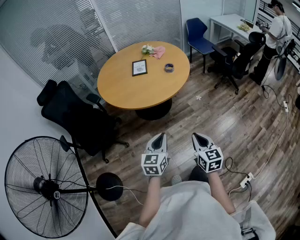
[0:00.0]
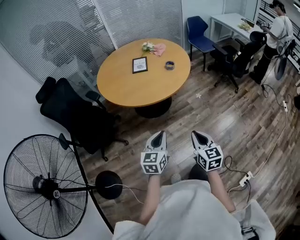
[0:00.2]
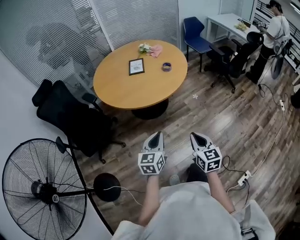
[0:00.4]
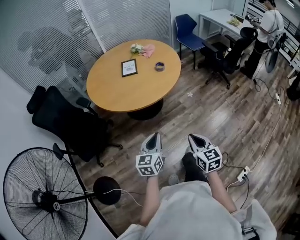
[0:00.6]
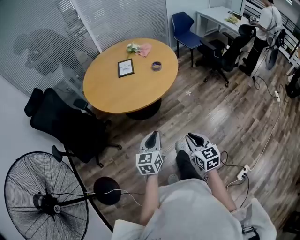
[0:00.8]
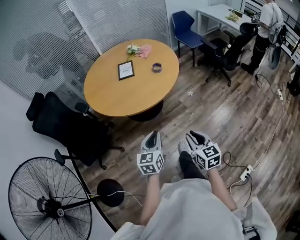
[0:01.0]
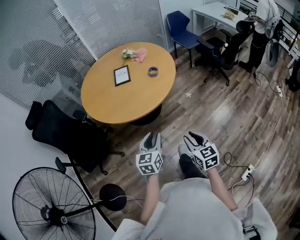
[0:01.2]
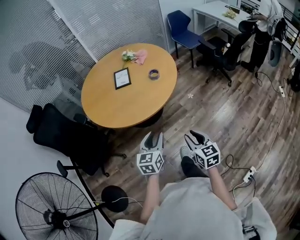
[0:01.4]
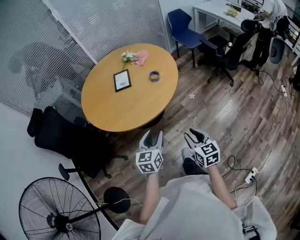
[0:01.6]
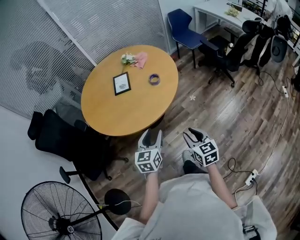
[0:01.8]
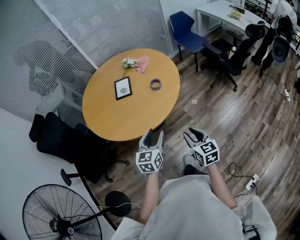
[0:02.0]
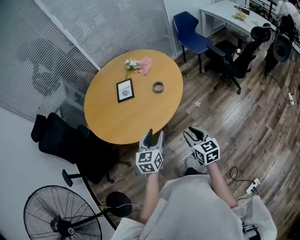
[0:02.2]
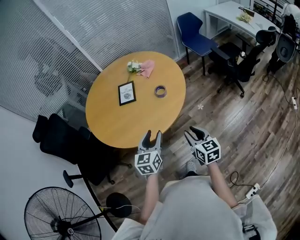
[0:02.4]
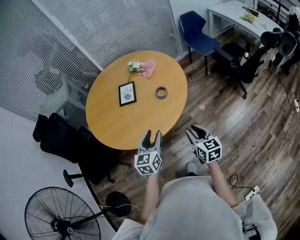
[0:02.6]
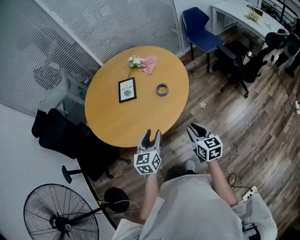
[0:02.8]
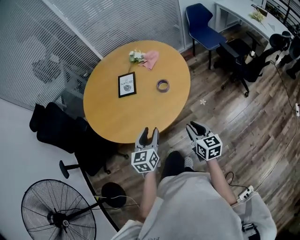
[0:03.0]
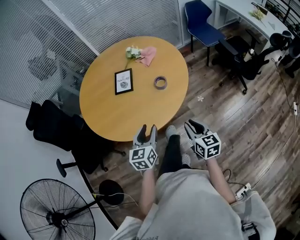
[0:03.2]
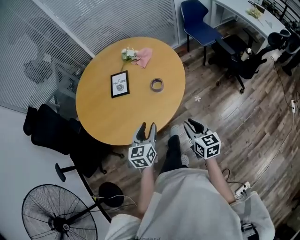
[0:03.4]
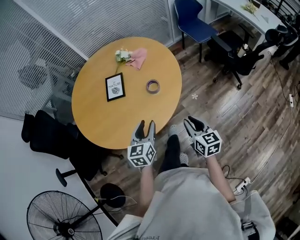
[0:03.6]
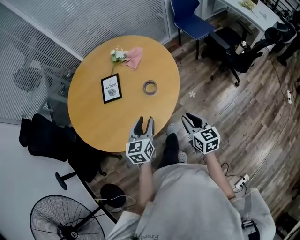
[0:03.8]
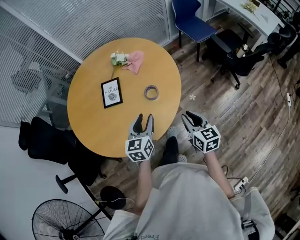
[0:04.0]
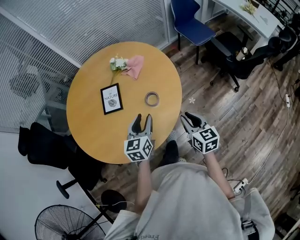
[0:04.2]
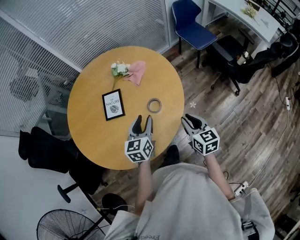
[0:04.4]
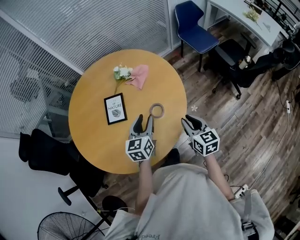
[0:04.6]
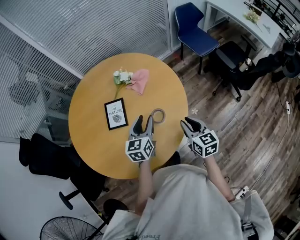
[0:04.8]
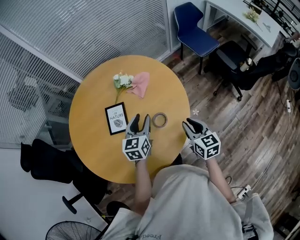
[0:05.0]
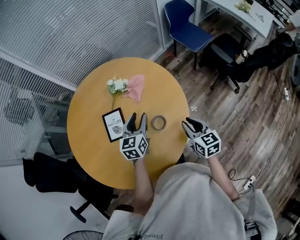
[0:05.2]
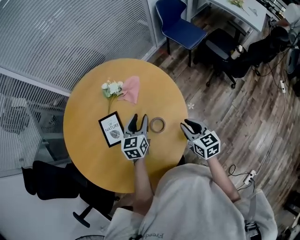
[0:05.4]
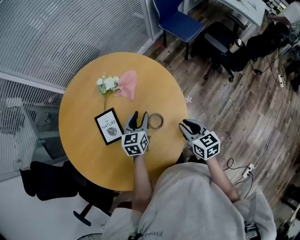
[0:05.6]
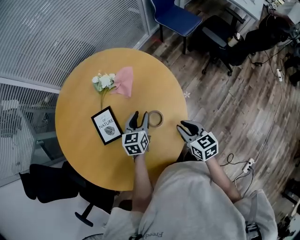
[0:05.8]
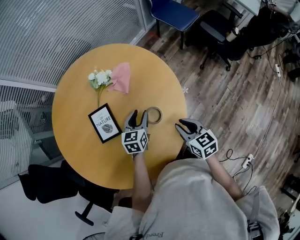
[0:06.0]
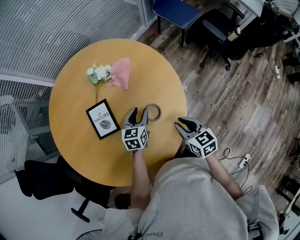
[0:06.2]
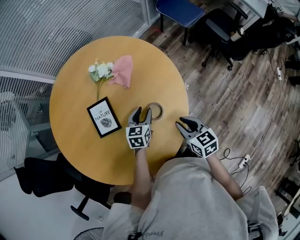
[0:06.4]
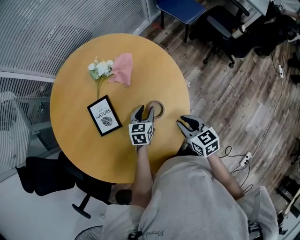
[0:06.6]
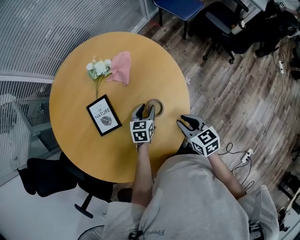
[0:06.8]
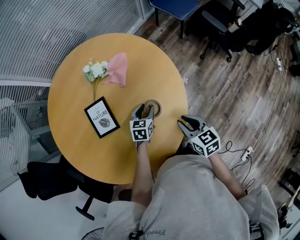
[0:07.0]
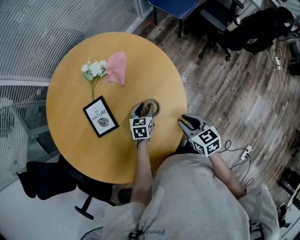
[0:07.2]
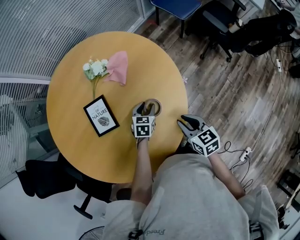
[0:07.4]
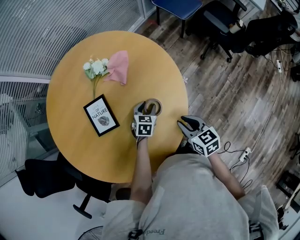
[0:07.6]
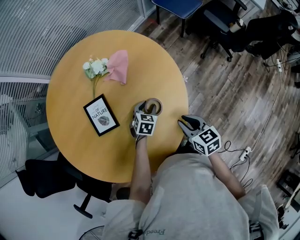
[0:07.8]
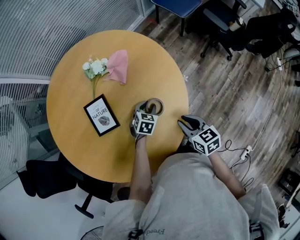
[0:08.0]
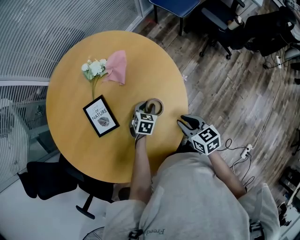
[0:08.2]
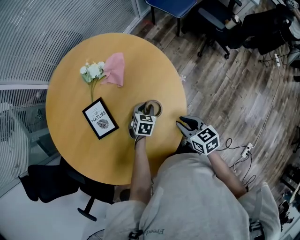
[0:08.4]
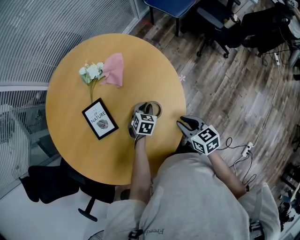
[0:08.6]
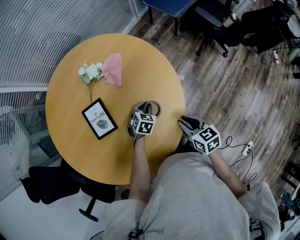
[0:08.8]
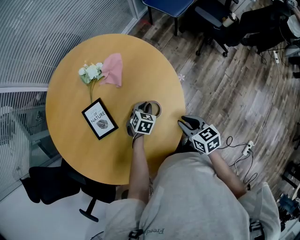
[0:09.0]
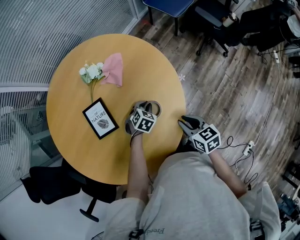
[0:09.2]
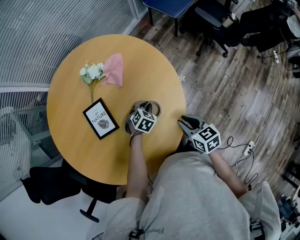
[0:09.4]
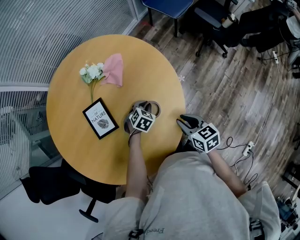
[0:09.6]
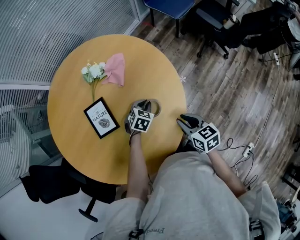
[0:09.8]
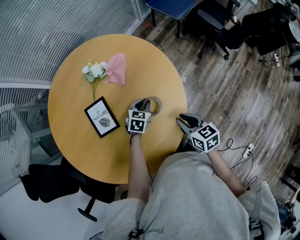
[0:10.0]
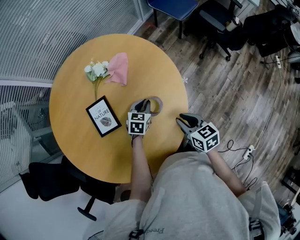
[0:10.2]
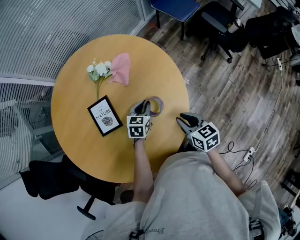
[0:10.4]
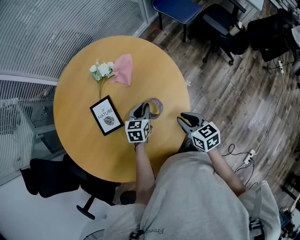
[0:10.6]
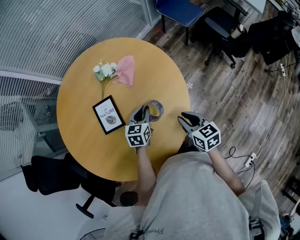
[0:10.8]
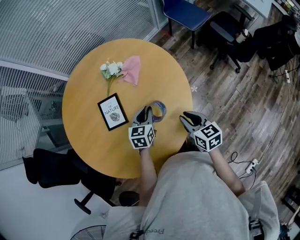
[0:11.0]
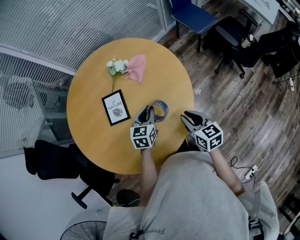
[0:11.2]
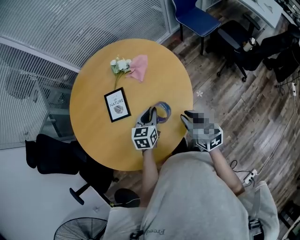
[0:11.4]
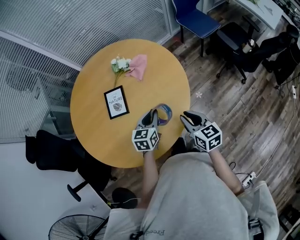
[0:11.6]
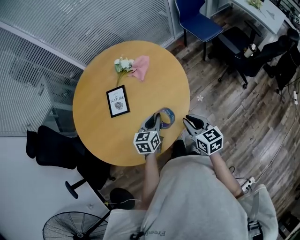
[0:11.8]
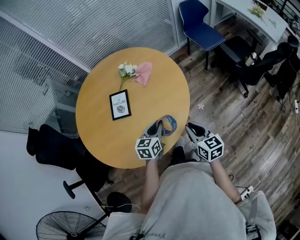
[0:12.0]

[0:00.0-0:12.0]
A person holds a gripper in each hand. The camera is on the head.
0:00.0 to 0:01.6: The grippers both shift forward by roughly 20 cm. The left gripper opens up. Meanwhile the right gripper opens its fingers.
0:01.6 to 0:03.0: The grippers both shift forward by roughly 20 cm.
0:03.0 to 0:04.4: The grippers both shift forward by some 20 cm.
0:04.4 to 0:06.0: The right gripper is displaced downward, forward and to the left by roughly 10 cm. Meanwhile the left gripper heads forward and downward, covering some 20 cm, and turns by roughly 20 degrees.
0:06.0 to 0:07.6: The left gripper shifts approximately 10 cm downward, and rotates roughly 20 degrees.
0:07.6 to 0:09.0: The left gripper closes its fingers.
0:09.0 to 0:10.4: The left gripper heads upward, covering roughly 5 cm, and rotates approximately 30 degrees.
0:10.4 to 0:12.0: The right gripper travels backward, upward and to the right by some 15 cm; the left gripper is displaced backward and upward by roughly 20 cm, and turns by about 30 degrees.

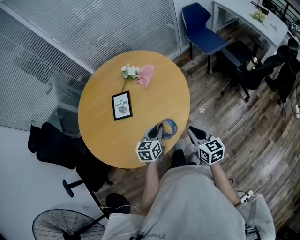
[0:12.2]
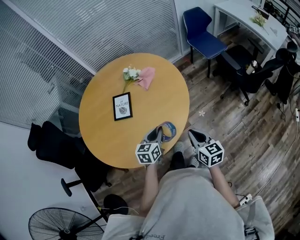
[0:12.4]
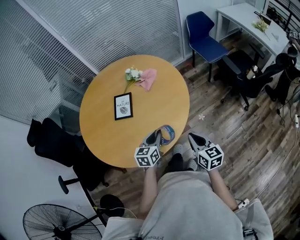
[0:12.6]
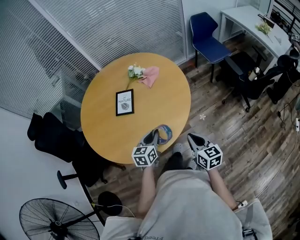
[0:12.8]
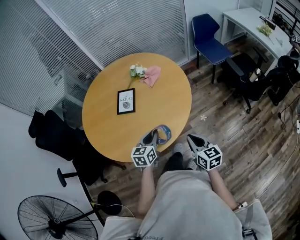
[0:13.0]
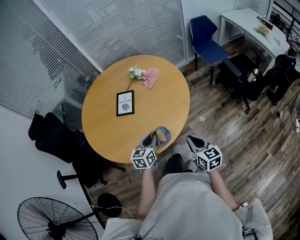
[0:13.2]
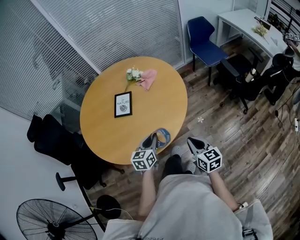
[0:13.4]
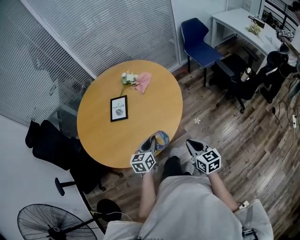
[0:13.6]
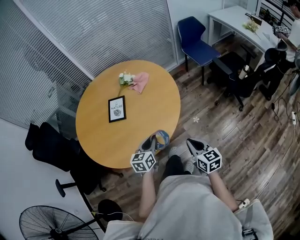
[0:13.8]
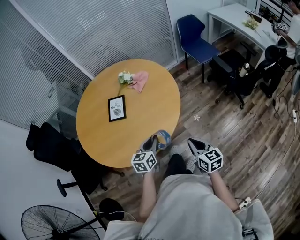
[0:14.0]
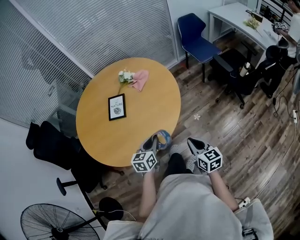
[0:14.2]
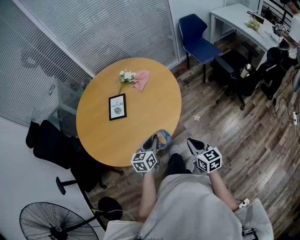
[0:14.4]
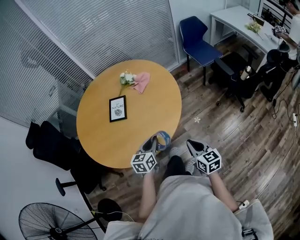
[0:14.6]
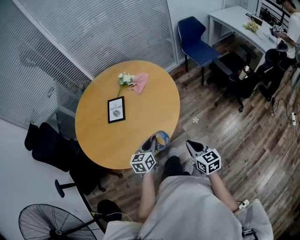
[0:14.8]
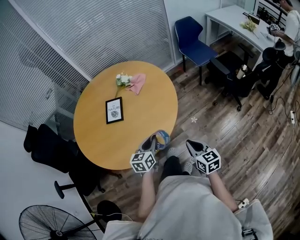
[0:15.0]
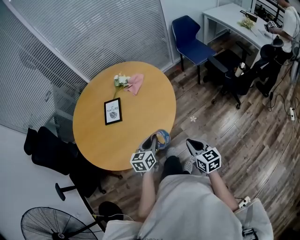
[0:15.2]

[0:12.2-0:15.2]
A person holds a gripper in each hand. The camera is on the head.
0:12.2 to 0:13.8: Both grippers travel together backward, some 10 cm.
0:13.8 to 0:15.2: There are only small adjustments of the grippers.

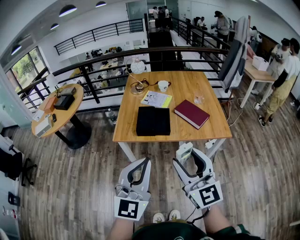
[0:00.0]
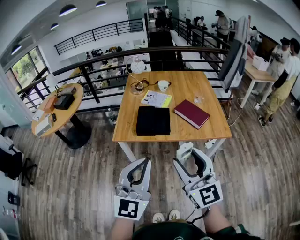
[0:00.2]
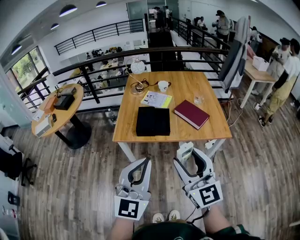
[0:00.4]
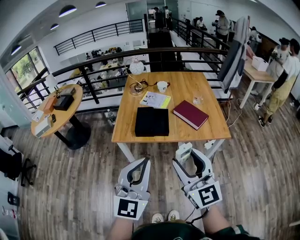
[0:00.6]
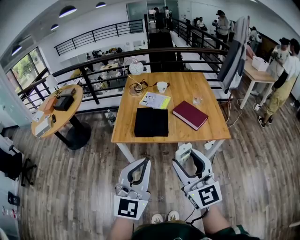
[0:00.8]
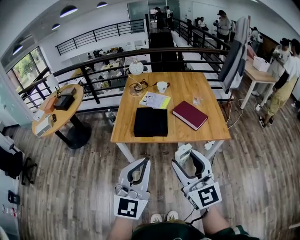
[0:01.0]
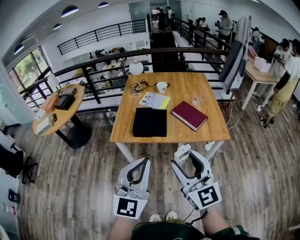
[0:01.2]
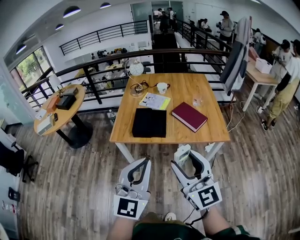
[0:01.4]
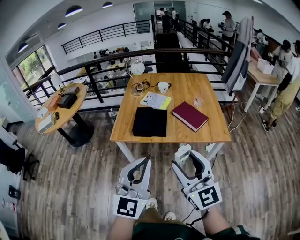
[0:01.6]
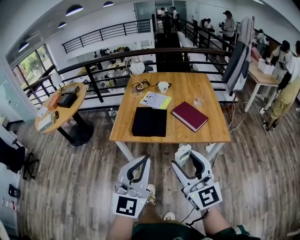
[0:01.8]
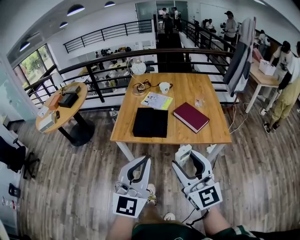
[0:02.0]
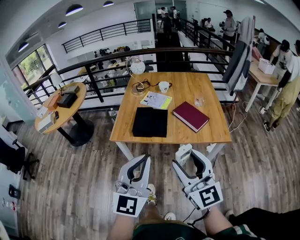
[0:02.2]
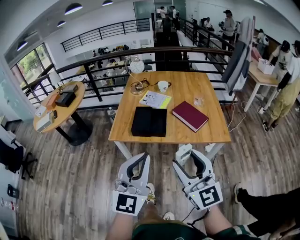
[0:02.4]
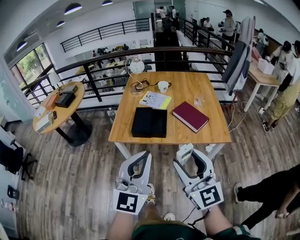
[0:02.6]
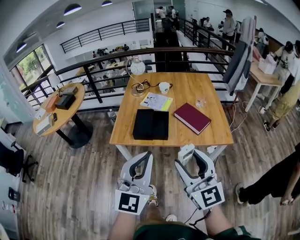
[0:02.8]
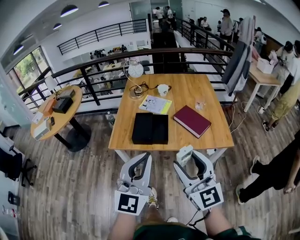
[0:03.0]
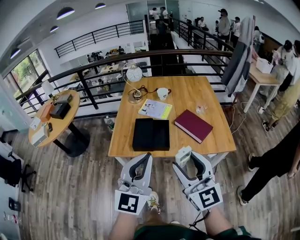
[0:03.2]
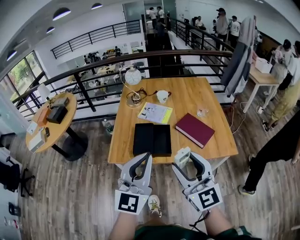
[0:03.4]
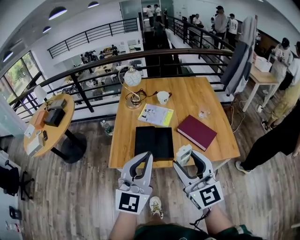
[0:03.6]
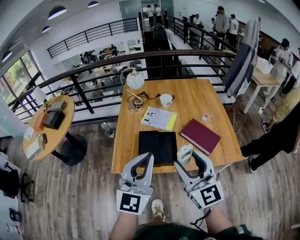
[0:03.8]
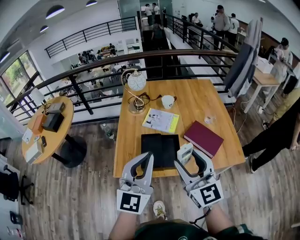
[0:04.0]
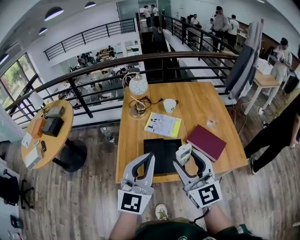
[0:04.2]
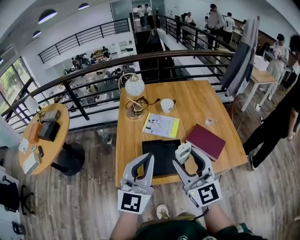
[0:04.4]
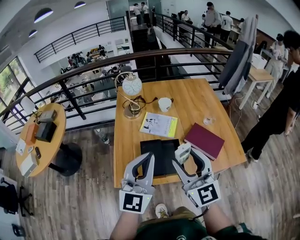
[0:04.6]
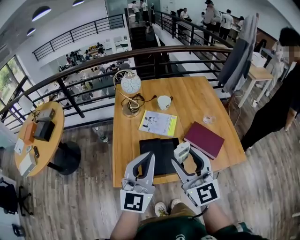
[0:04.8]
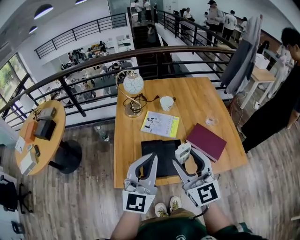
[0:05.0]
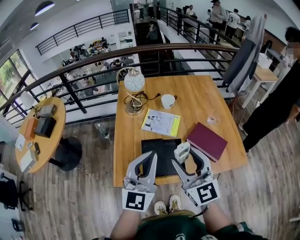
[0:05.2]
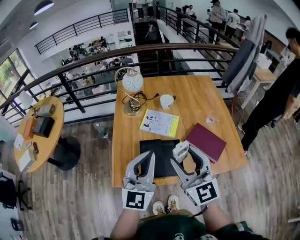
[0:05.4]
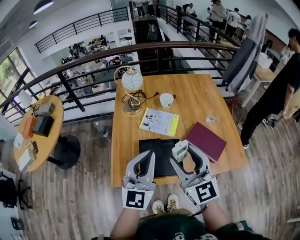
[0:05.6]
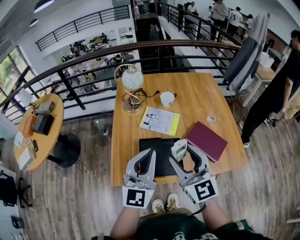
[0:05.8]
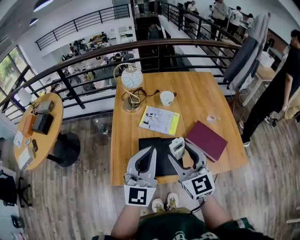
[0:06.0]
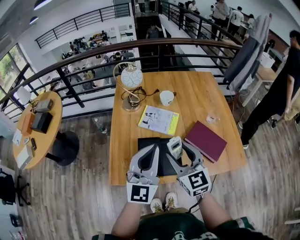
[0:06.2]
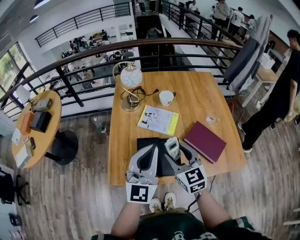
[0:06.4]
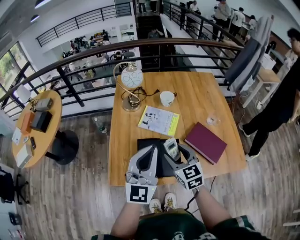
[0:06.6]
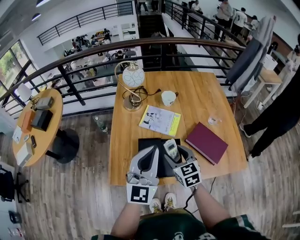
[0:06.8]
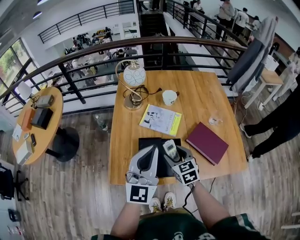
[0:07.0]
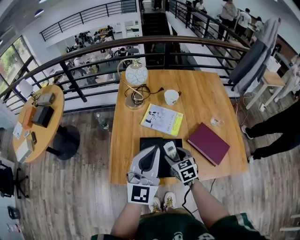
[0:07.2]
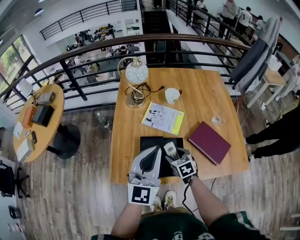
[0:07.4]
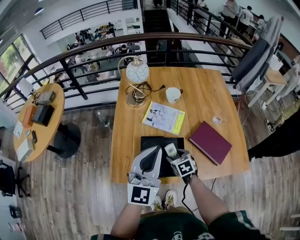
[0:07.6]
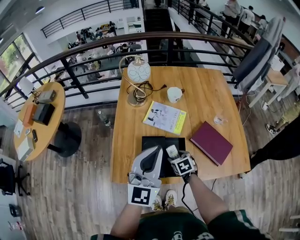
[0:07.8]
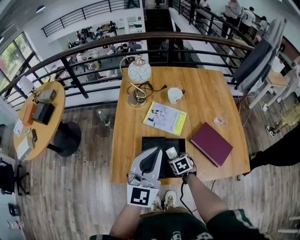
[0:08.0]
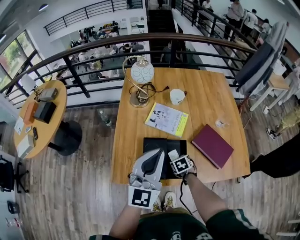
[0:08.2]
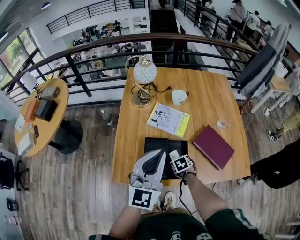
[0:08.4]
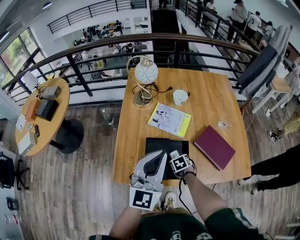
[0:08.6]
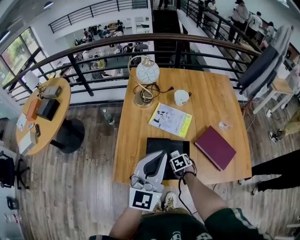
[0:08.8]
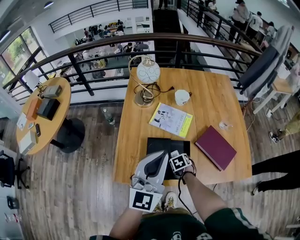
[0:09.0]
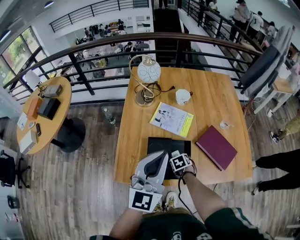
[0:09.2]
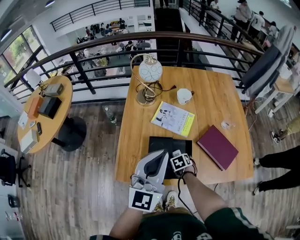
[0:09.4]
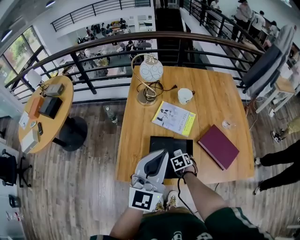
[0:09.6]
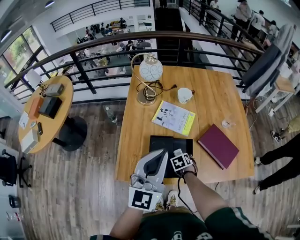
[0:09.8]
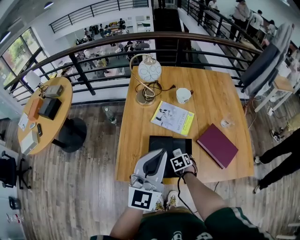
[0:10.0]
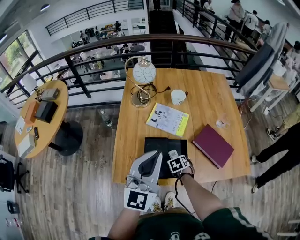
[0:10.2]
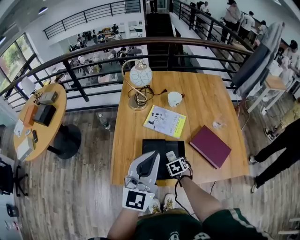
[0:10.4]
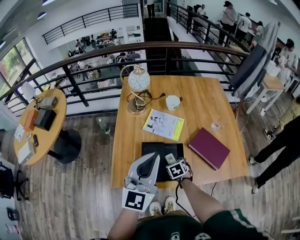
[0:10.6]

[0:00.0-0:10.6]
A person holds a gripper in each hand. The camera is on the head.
0:00.0 to 0:01.6: Both grippers travel together to the right, about 5 cm.
0:01.6 to 0:03.0: Both grippers move forward, some 10 cm.
0:03.0 to 0:04.6: The left gripper heads forward, covering approximately 30 cm. The right gripper goes approximately 30 cm forward and to the left.
0:04.6 to 0:06.0: The left gripper goes about 5 cm forward. Meanwhile the right gripper is displaced forward and downward by some 10 cm.
0:06.0 to 0:07.6: The right gripper goes roughly 25 cm downward, and angles its fingers downward, by roughly 40 degrees.
0:07.6 to 0:09.0: The right gripper shifts about 10 cm downward, and swivels about 20 degrees.
0:09.0 to 0:10.6: The grippers make only small movements.
